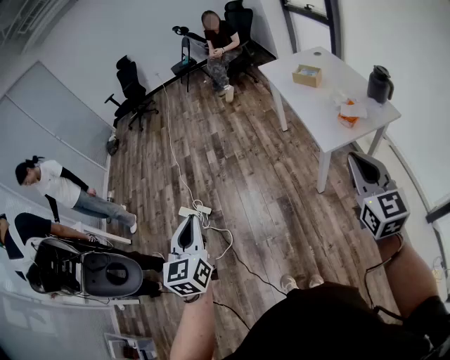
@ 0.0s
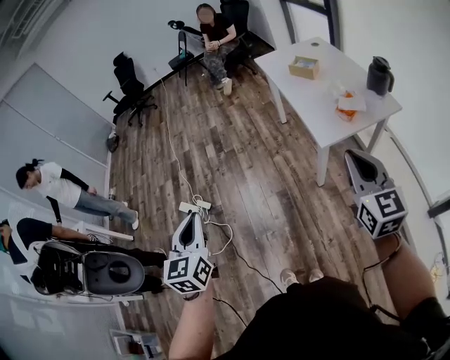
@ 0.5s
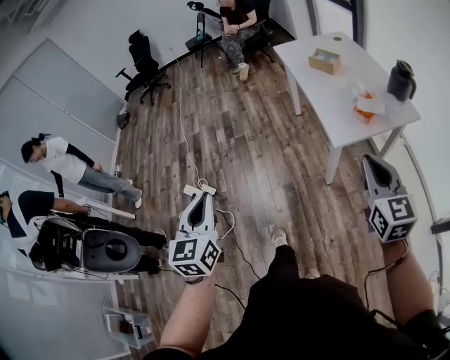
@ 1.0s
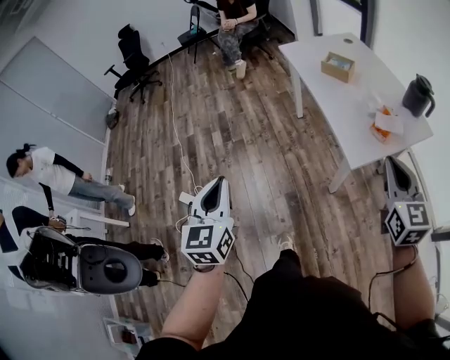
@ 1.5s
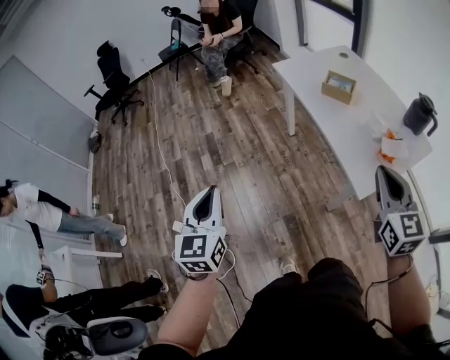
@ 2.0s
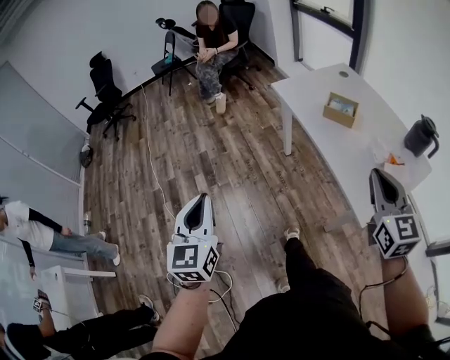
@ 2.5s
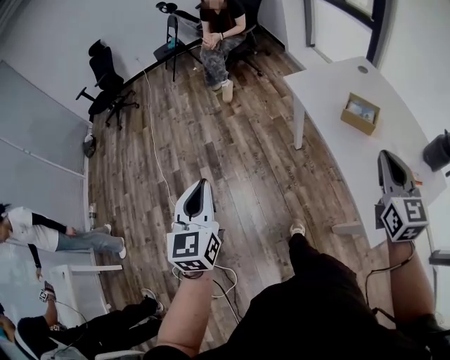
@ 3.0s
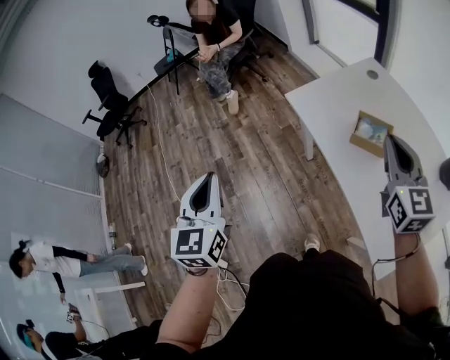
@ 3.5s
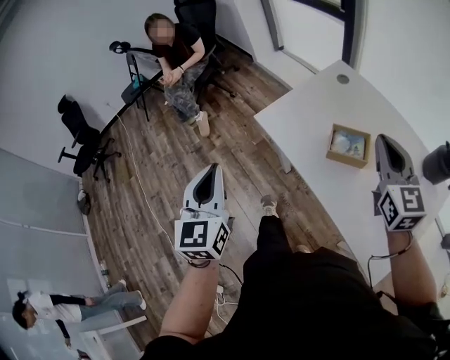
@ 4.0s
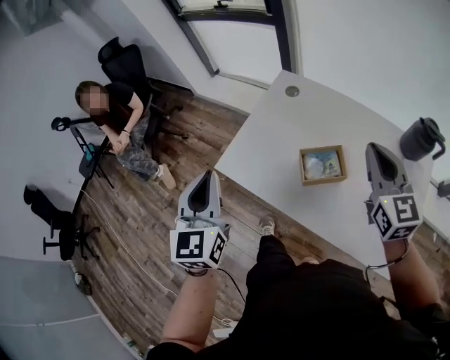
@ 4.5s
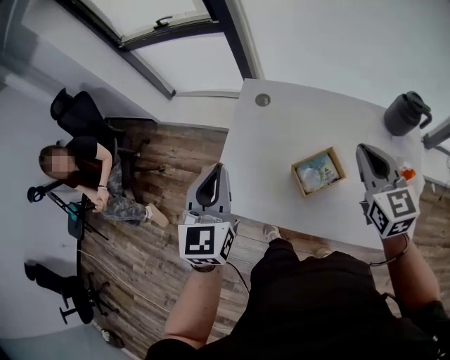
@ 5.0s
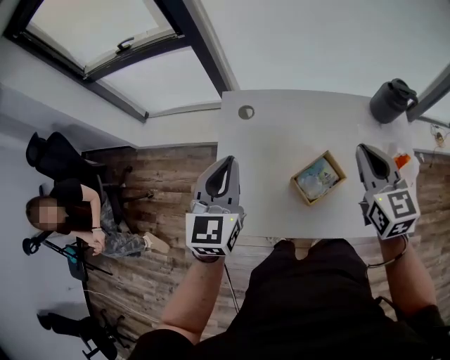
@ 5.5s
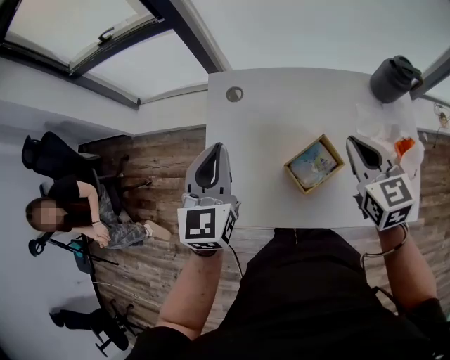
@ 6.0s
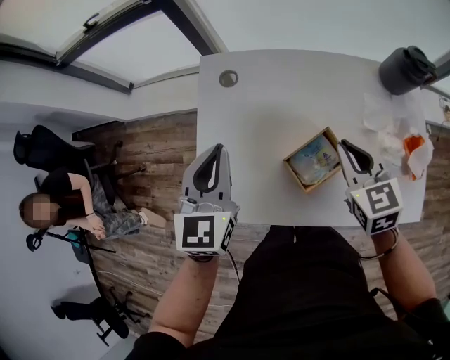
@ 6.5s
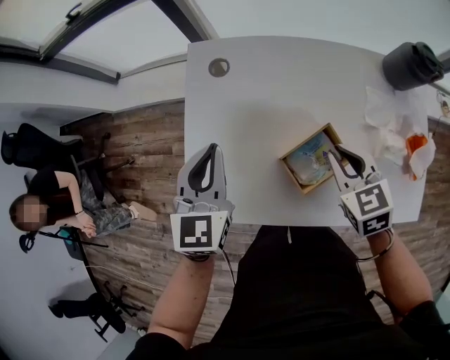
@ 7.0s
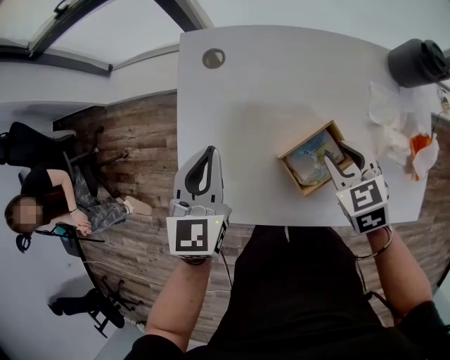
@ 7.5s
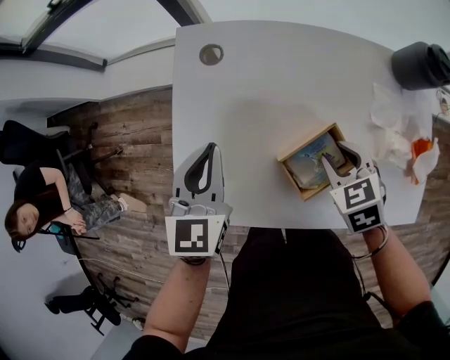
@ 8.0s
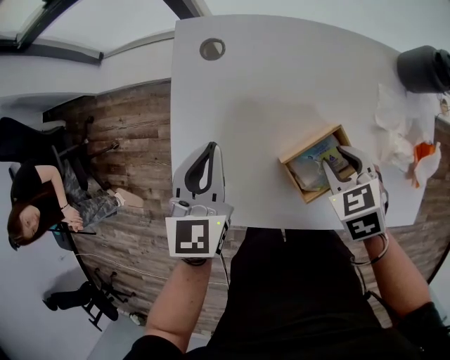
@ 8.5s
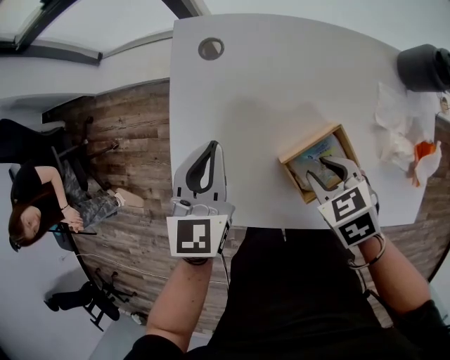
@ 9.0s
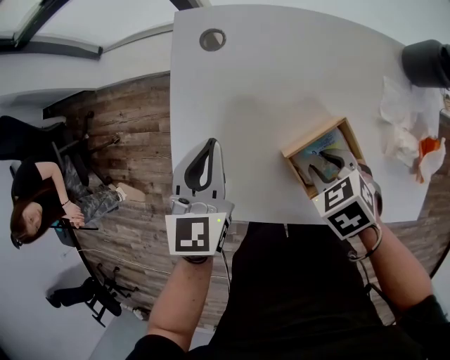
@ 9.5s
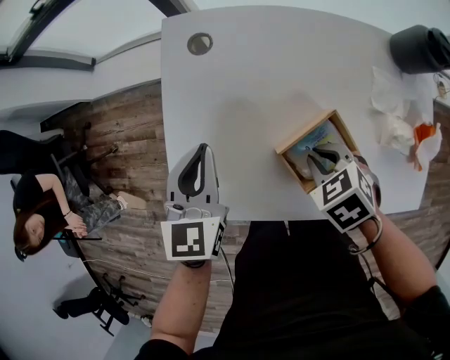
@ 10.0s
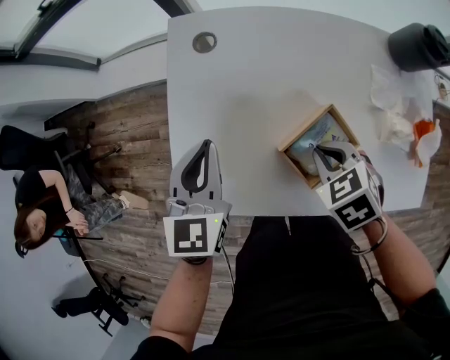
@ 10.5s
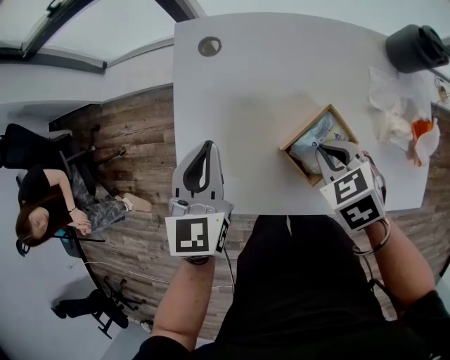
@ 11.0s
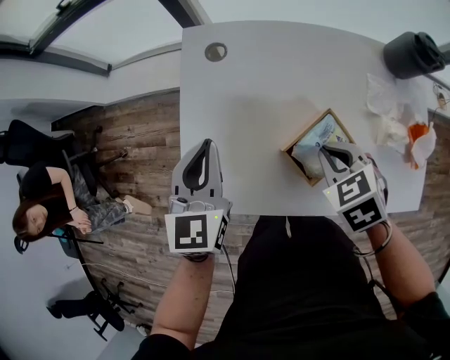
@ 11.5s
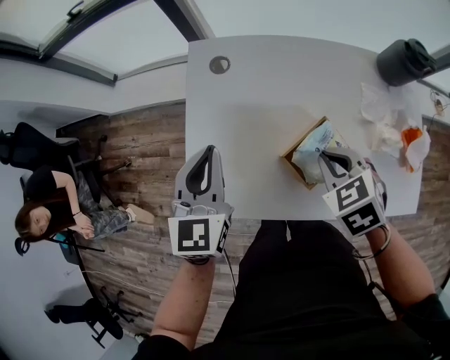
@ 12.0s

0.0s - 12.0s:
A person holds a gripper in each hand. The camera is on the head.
0.0s - 2.0s: The two grippers go approximately 35 cm forward.
2.0s - 4.0s: The two grippers travel together, forward, roughly 50 cm.
4.0s - 6.0s: The right gripper ends up about 15 cm from where it was, and changes its angle by approximately 50 degrees. Meanwhile the left gripper ends up roughly 50 cm from where it was, and changes its angle by approximately 60 degrees.
6.0s - 8.0s: The grippers both shift downward by roughly 15 cm. The right gripper tilts its fingers roughly 30 degrees downward, and opens its fingers.
8.0s - 10.0s: The right gripper moves about 5 cm.
10.0s - 12.0s: The grippers both shift upward by roughly 10 cm.

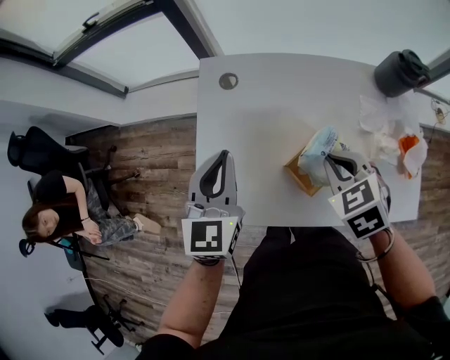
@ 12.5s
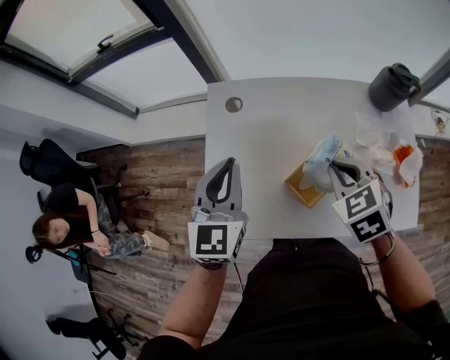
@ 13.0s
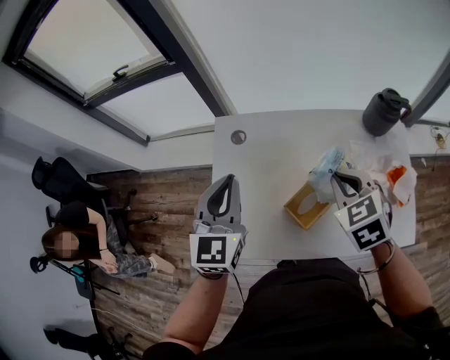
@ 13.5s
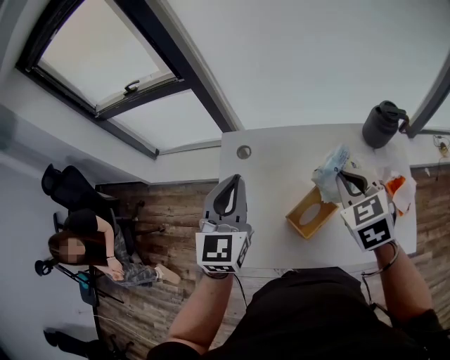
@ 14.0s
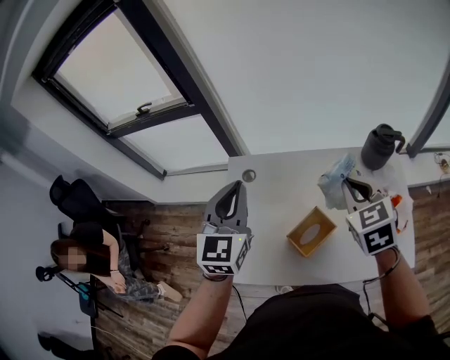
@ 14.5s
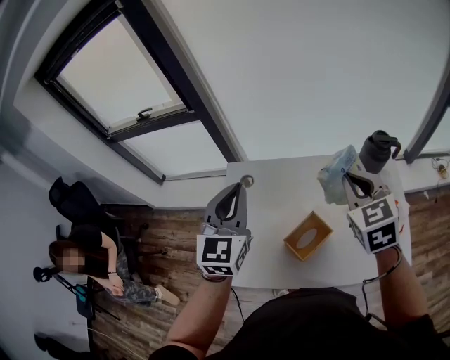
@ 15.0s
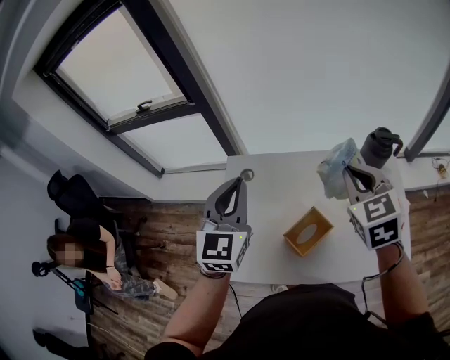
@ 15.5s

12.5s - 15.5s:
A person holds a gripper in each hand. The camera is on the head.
12.5s - 14.0s: The left gripper heads upward, covering roughly 10 cm, while the right gripper moves upward and to the right, some 15 cm.
14.0s - 15.5s: The right gripper travels upward by about 10 cm, while the left gripper moves upward, approximately 5 cm.

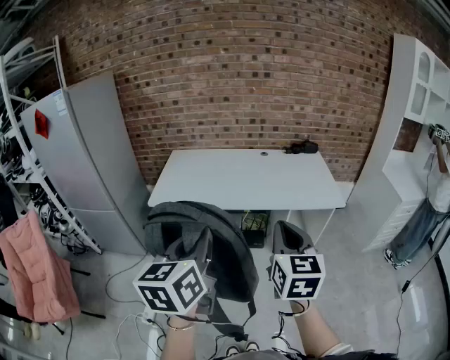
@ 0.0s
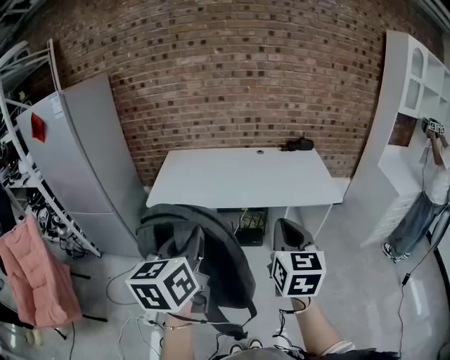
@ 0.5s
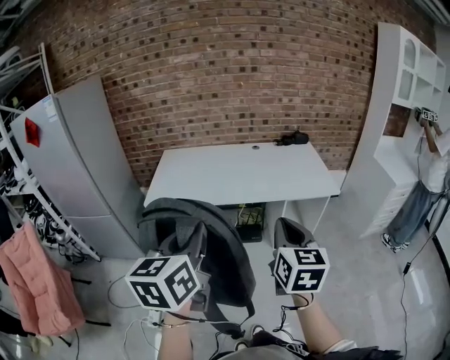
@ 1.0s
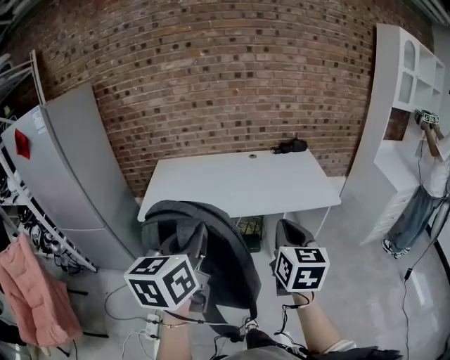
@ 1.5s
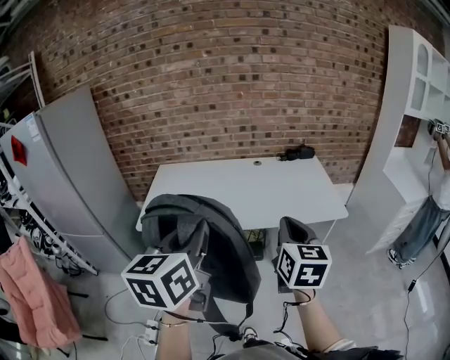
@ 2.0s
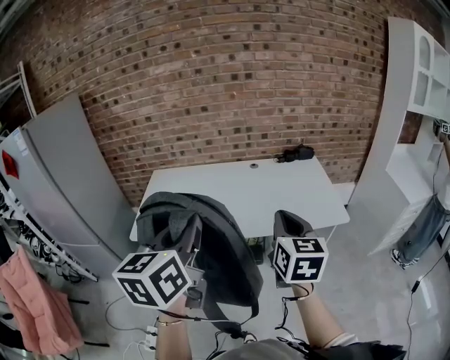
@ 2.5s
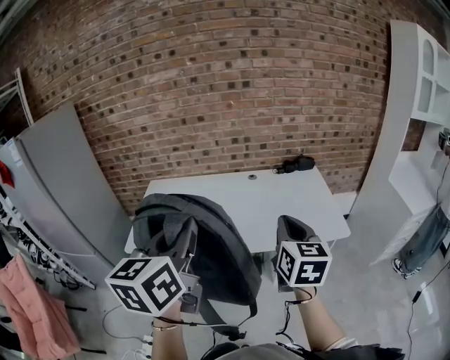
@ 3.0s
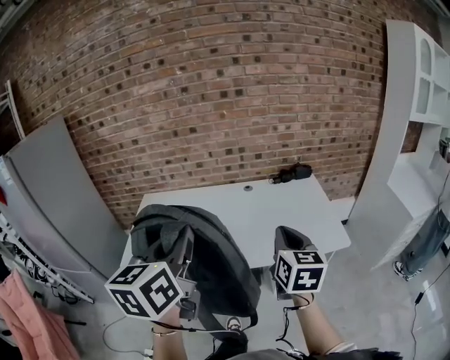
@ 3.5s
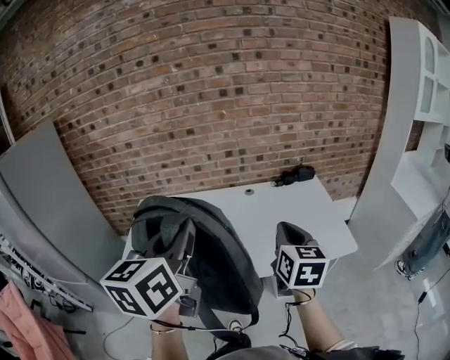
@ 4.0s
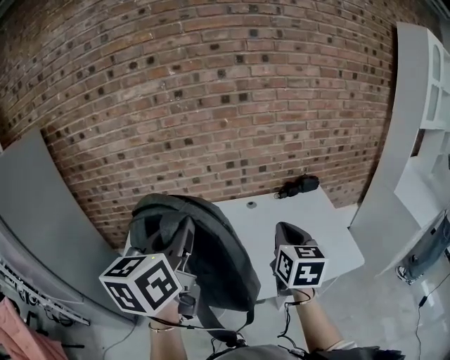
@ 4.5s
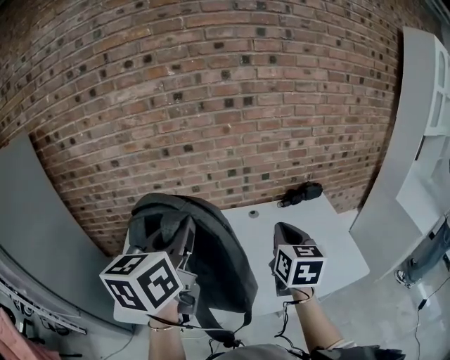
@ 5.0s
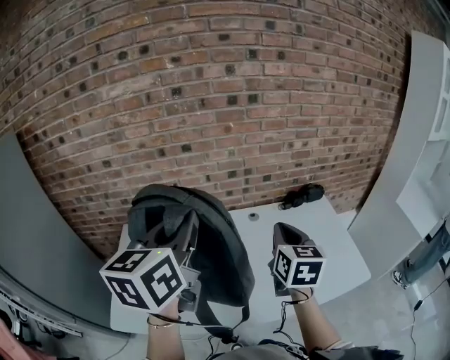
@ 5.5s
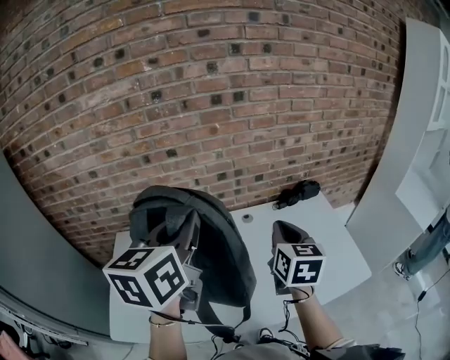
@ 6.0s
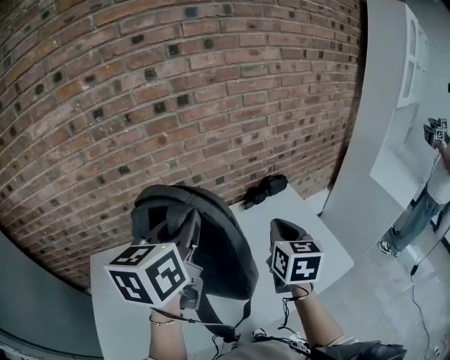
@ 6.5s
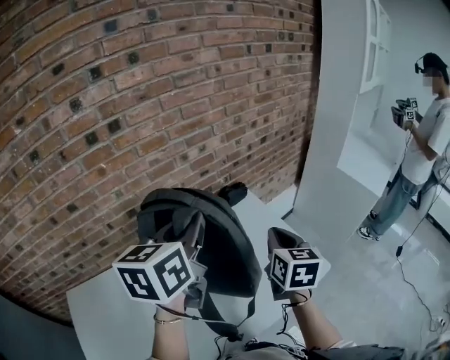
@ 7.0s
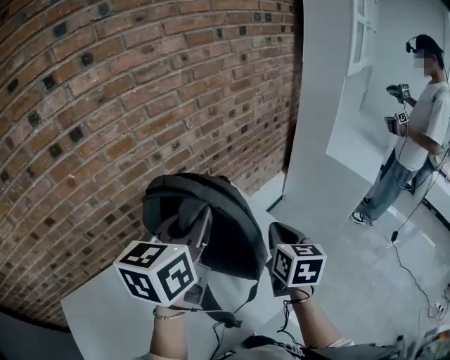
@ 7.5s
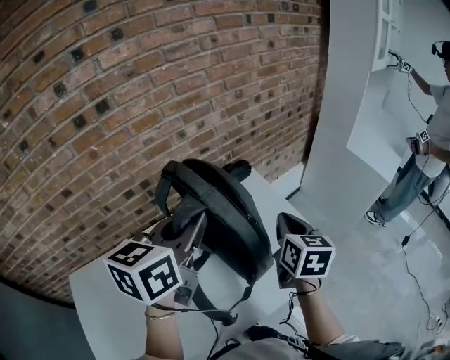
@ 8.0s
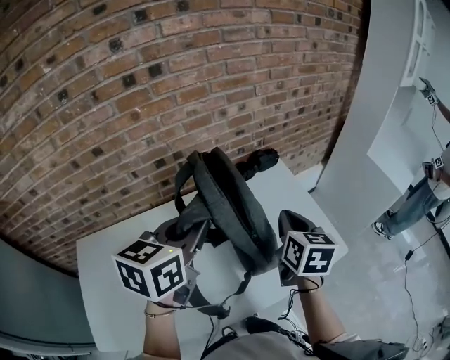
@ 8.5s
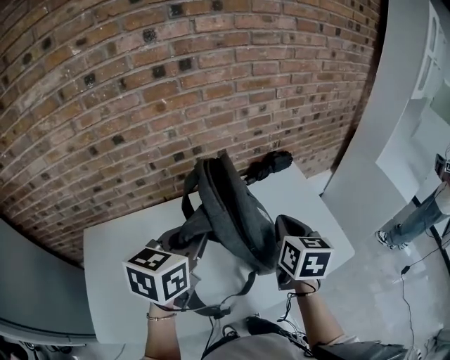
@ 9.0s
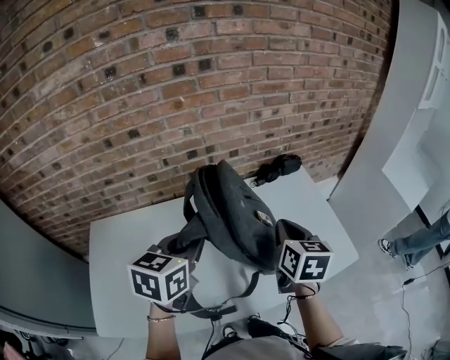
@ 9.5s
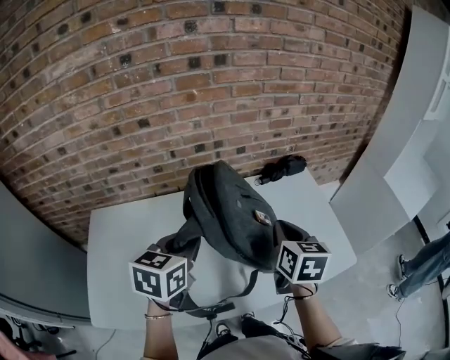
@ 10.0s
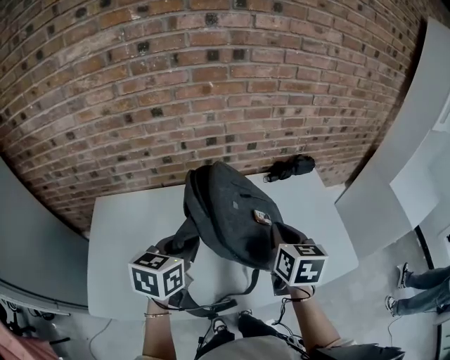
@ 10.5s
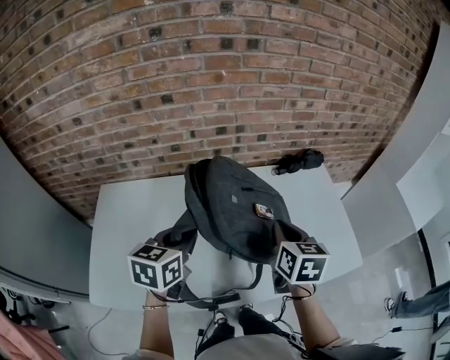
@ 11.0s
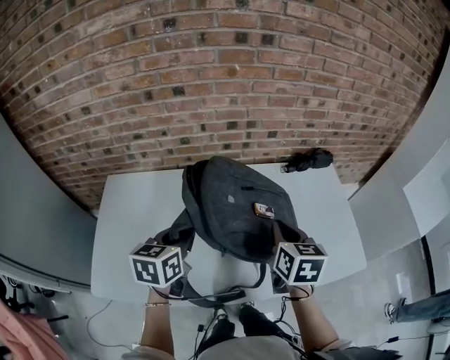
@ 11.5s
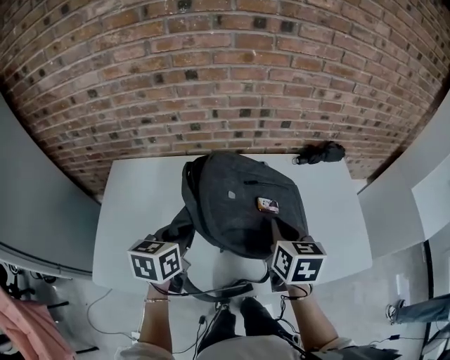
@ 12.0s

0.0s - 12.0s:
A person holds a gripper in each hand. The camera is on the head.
0.0s - 2.0s: Both grippers move forward, approximately 15 cm.
2.0s - 4.0s: Both grippers move forward, roughly 25 cm.
4.0s - 6.0s: The grippers both shift forward by some 25 cm.
6.0s - 8.0s: The right gripper shifts by roughly 30 cm, and turns by about 20 degrees. The left gripper shifts by some 30 cm, and swivels some 30 degrees.
8.0s - 10.0s: The right gripper goes about 25 cm to the left and backward, and turns by some 20 degrees. Meanwhile the left gripper moves to the left, backward and downward, about 30 cm, and changes its angle by some 20 degrees.
10.0s - 12.0s: Both grippers travel together to the left and downward, about 15 cm.
